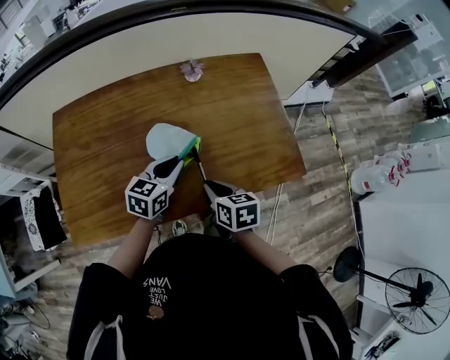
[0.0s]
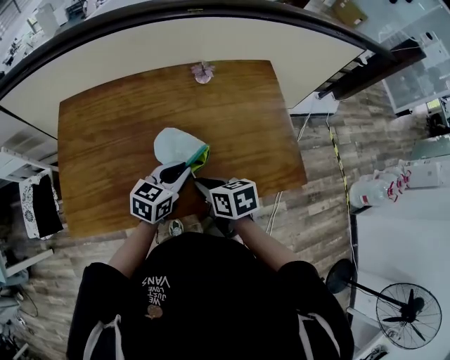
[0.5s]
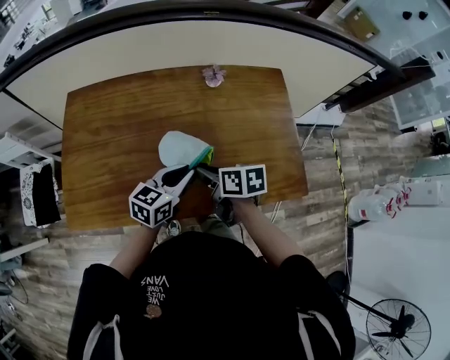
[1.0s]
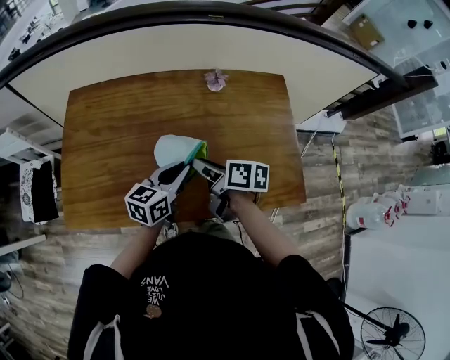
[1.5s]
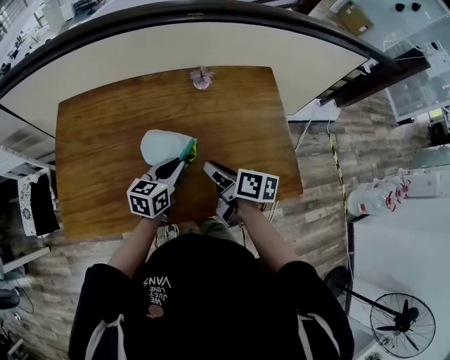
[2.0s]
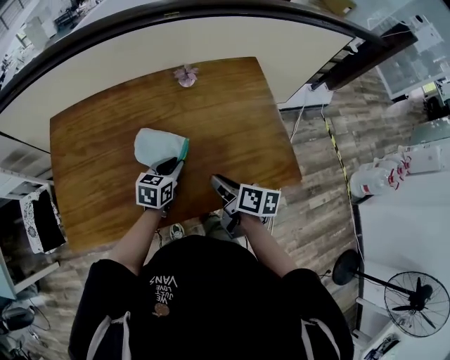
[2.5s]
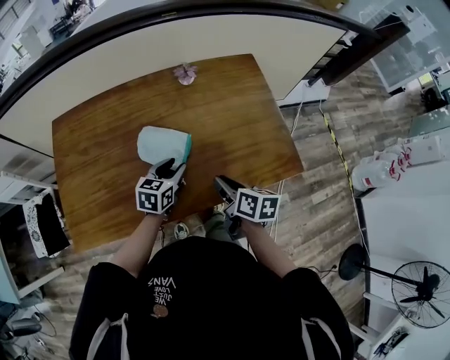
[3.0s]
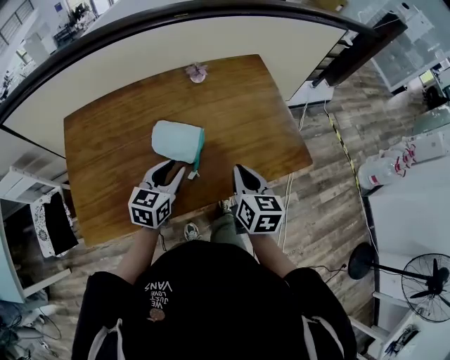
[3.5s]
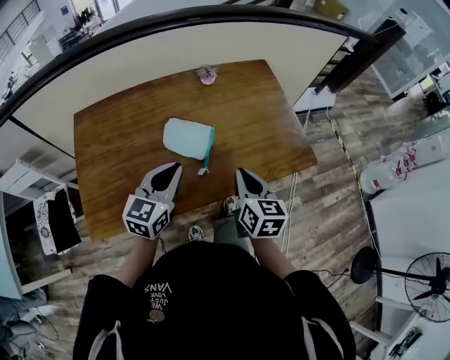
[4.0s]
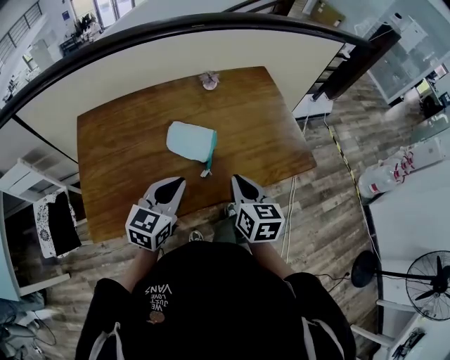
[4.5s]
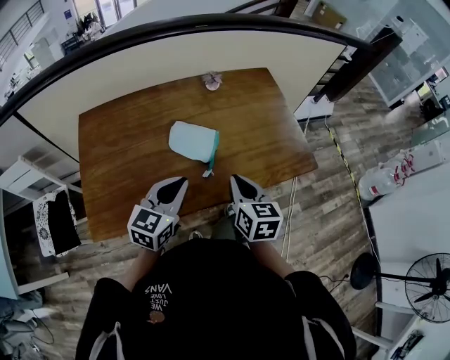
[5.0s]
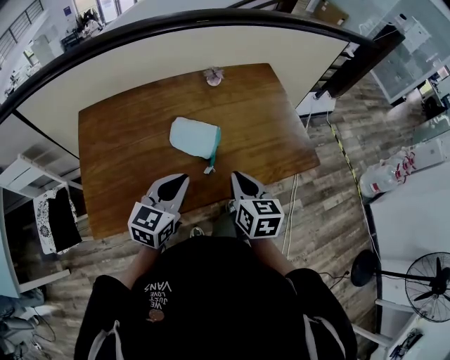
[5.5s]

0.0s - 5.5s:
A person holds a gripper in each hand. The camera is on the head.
0.0s - 2.0s: The right gripper shifts approximately 10 cm forward, and turns by some 30 degrees.
2.0s - 3.5s: Both grippers travel together backward, about 10 cm. The right gripper rotates about 40 degrees. The left gripper opens its fingers.
3.5s - 5.5s: The left gripper moves backward and upward, roughly 10 cm, and closes up. The right gripper is displaced to the left and backward by some 10 cm.

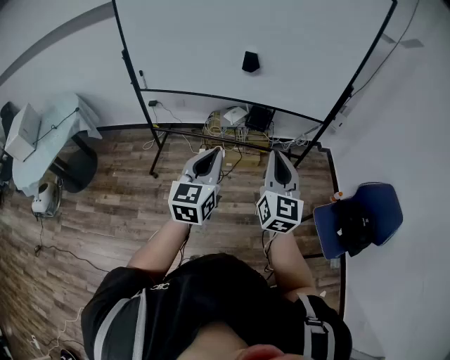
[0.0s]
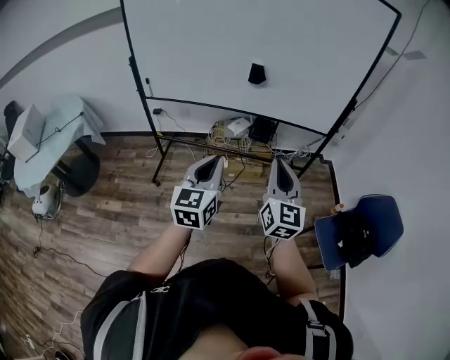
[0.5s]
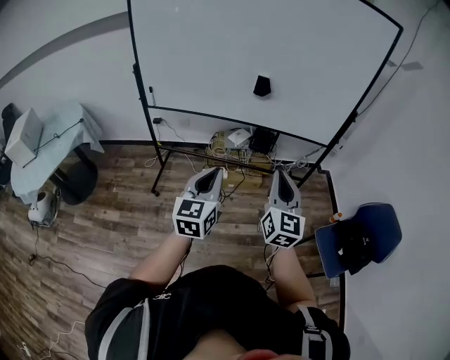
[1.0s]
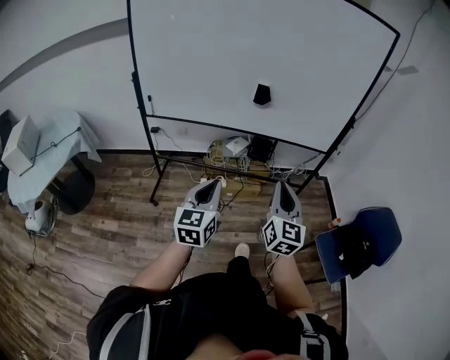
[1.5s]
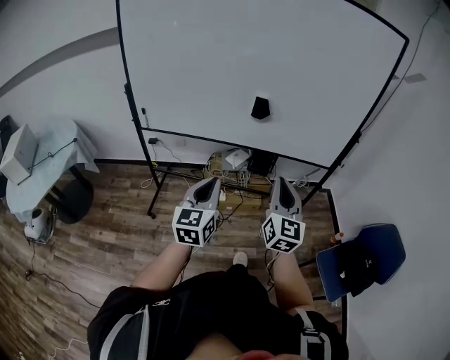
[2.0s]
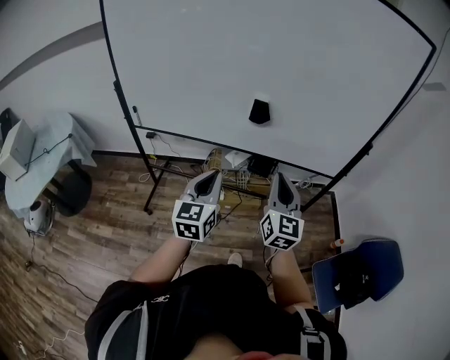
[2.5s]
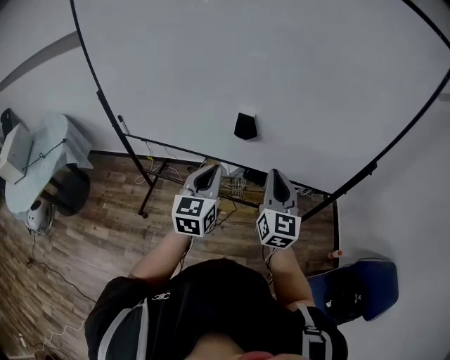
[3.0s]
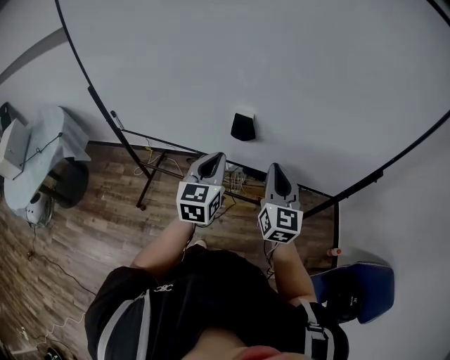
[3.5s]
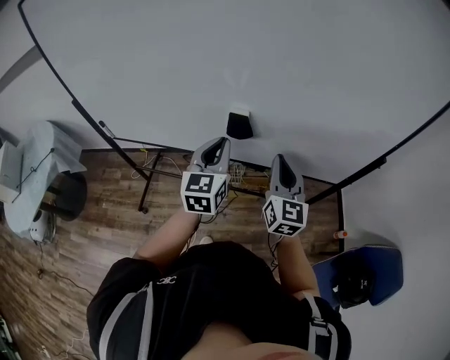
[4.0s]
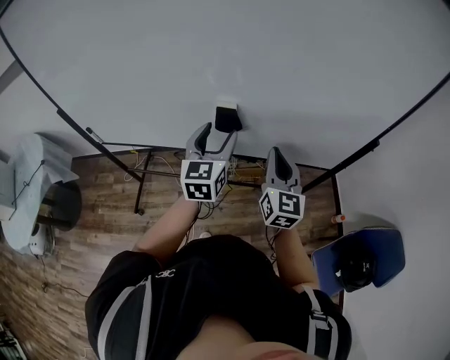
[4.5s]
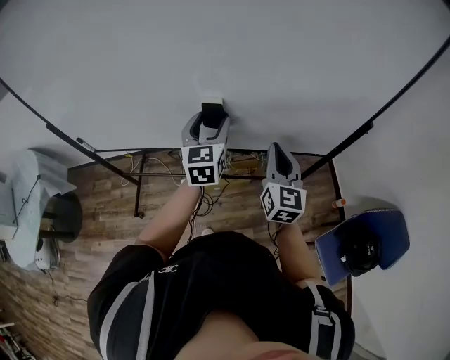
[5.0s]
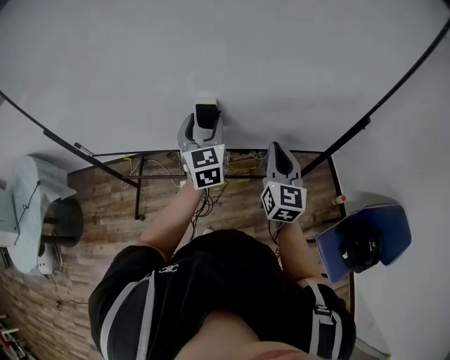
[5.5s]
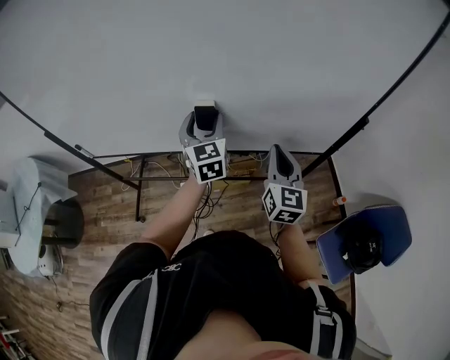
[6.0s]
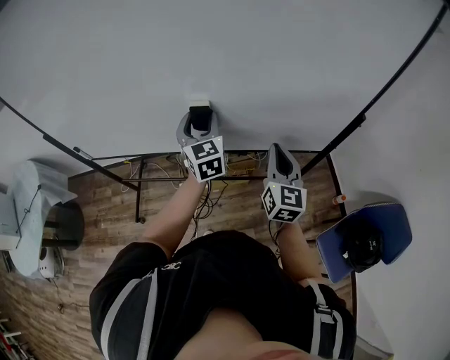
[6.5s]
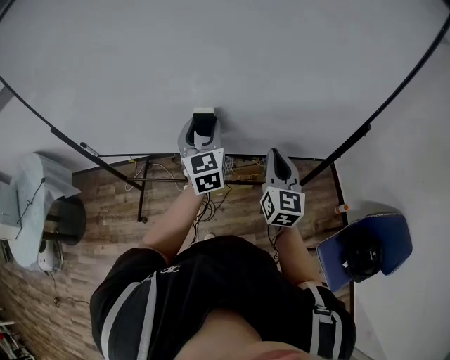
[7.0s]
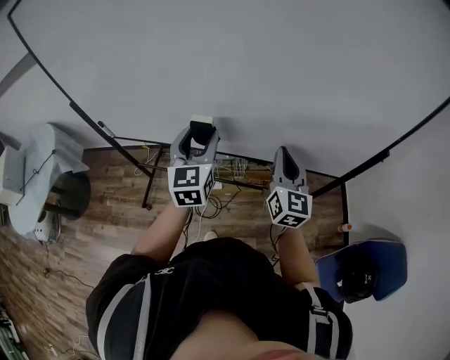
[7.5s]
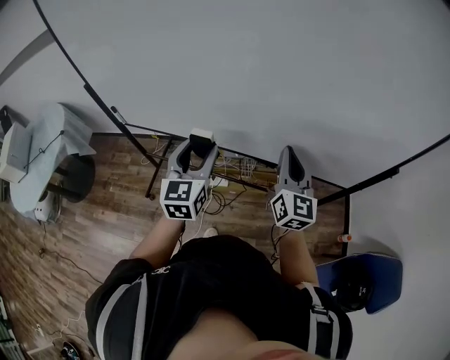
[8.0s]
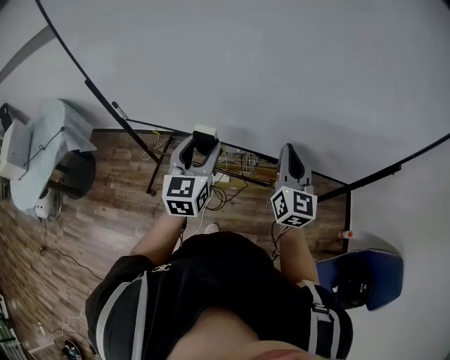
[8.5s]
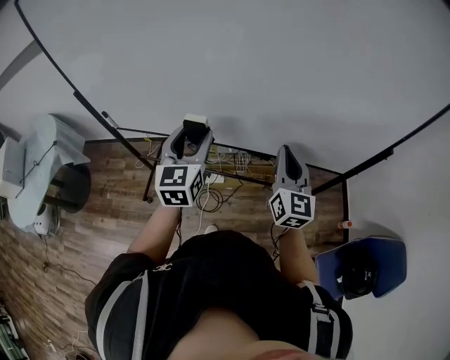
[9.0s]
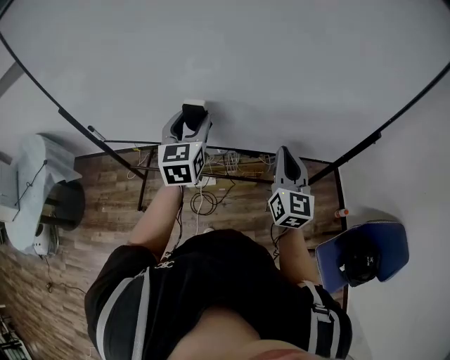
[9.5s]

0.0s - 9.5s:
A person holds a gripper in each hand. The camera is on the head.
0.0s - 2.0s: The right gripper shifts about 10 cm forward; the left gripper shifts some 15 cm forward and to the left.
2.0s - 4.0s: The two grippers go about 35 cm forward.
4.0s - 5.5s: The left gripper is displaced forward by approximately 5 cm, and opens up, while the right gripper shifts about 5 cm to the right.
5.5s - 7.5s: The left gripper goes roughly 10 cm to the left and backward.

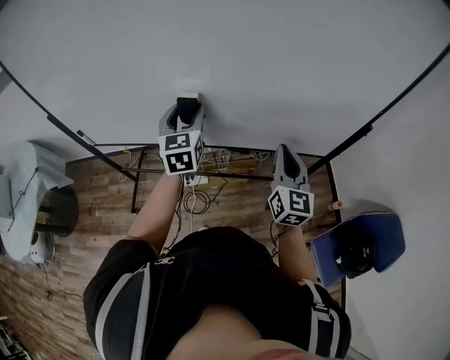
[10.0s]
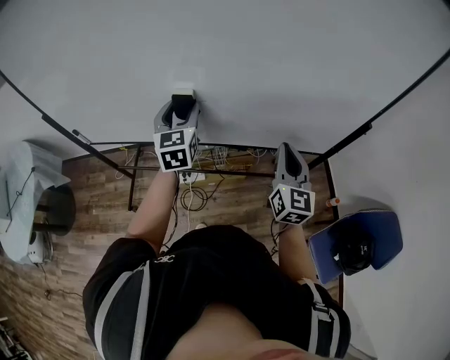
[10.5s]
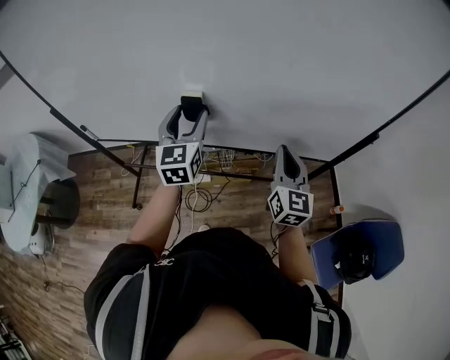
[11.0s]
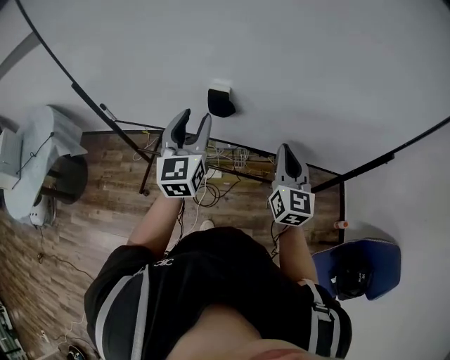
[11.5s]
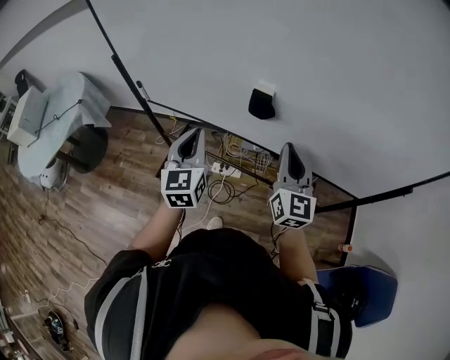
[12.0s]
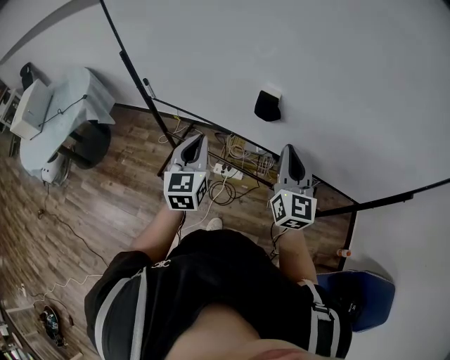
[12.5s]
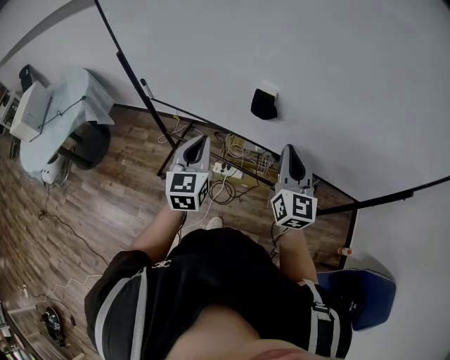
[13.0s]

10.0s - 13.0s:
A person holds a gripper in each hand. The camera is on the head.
10.0s - 11.5s: The left gripper moves backward, roughly 5 cm; the right gripper travels to the left by some 5 cm.
11.5s - 13.0s: The right gripper travels to the left by approximately 10 cm. Meanwhile the left gripper moves to the left, downward and backward, approximately 10 cm, and closes up.

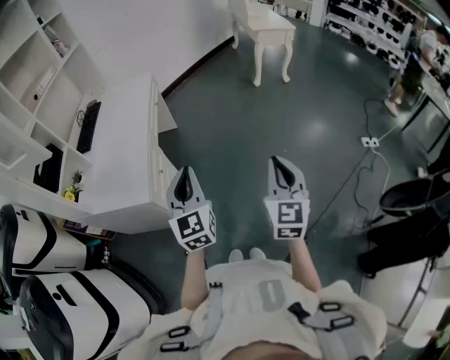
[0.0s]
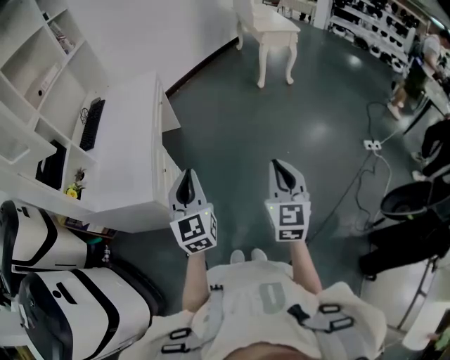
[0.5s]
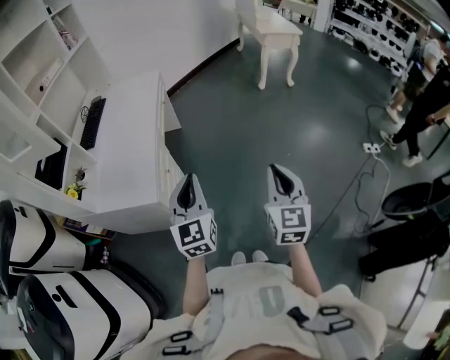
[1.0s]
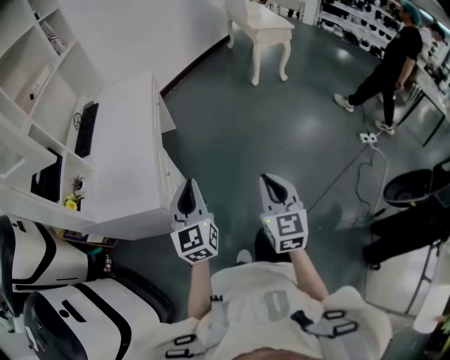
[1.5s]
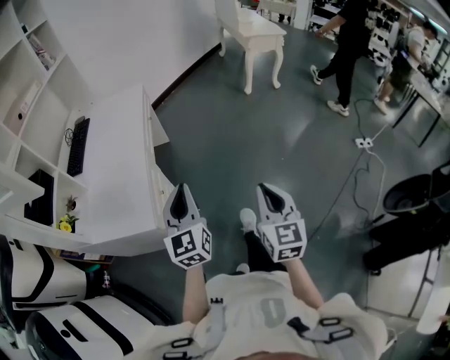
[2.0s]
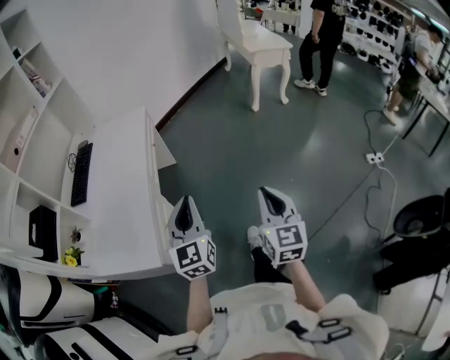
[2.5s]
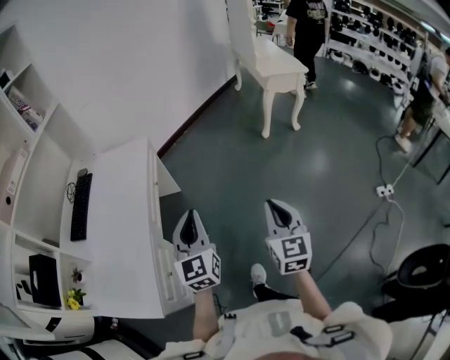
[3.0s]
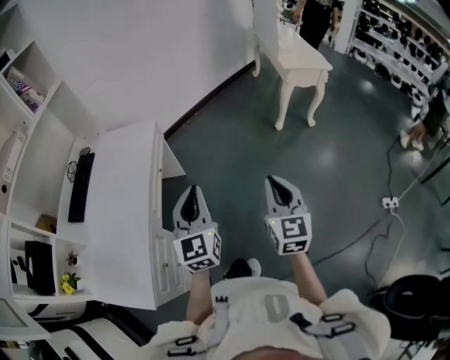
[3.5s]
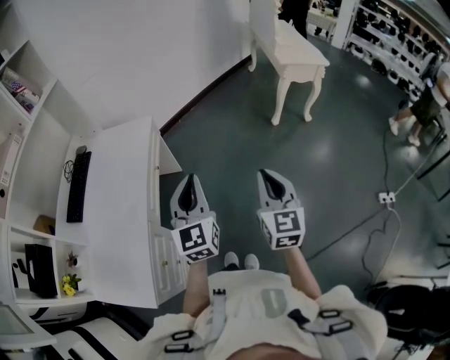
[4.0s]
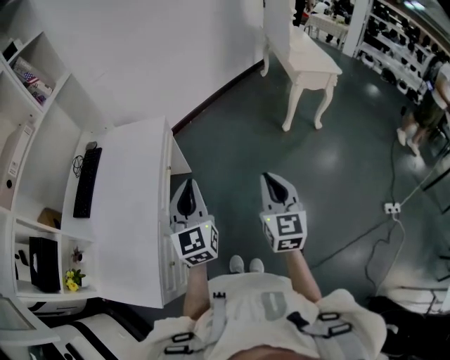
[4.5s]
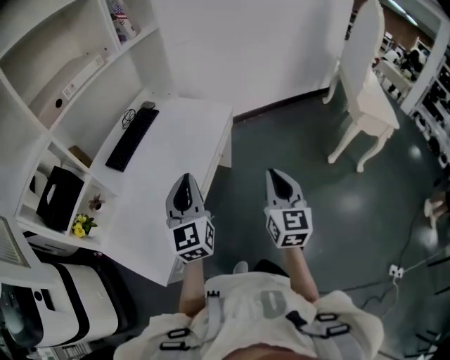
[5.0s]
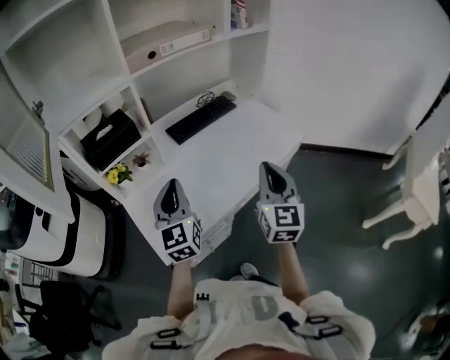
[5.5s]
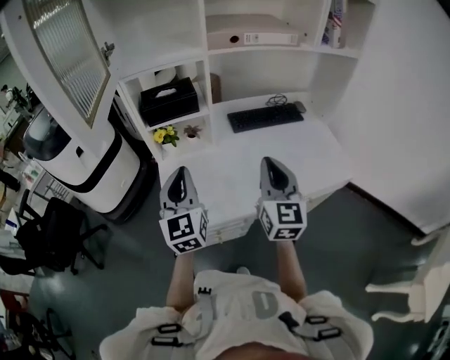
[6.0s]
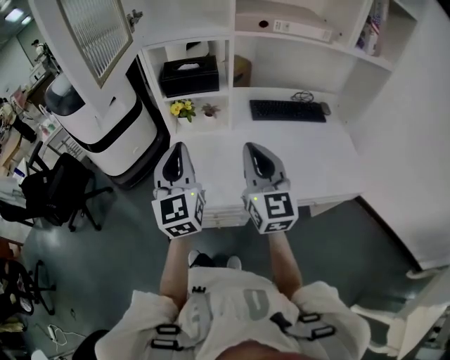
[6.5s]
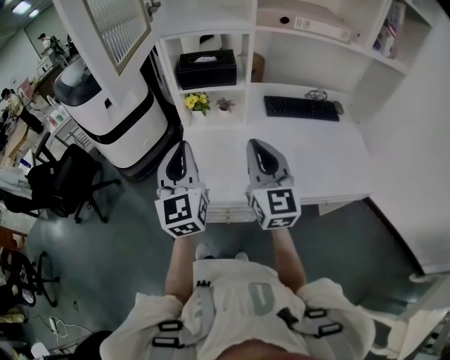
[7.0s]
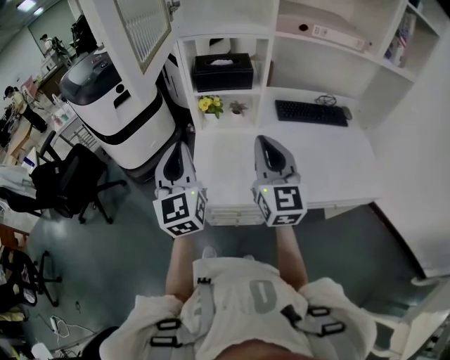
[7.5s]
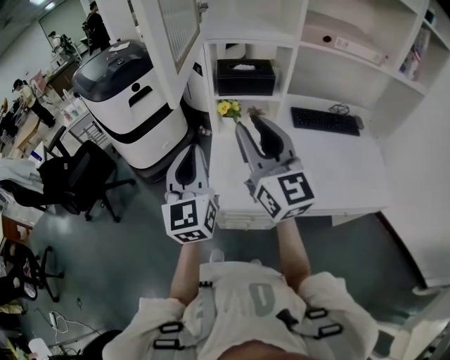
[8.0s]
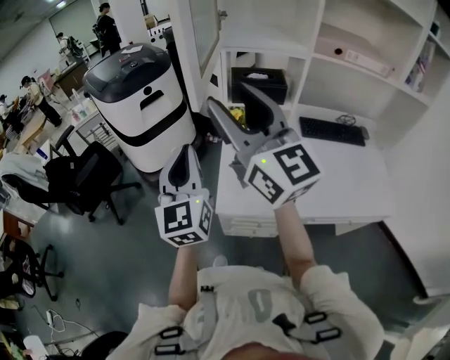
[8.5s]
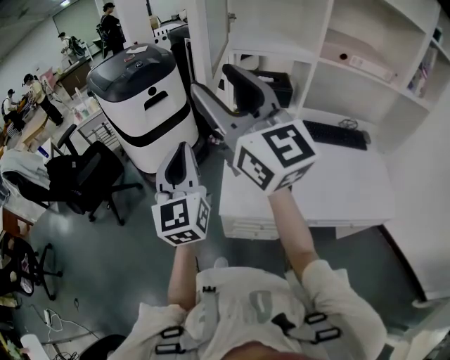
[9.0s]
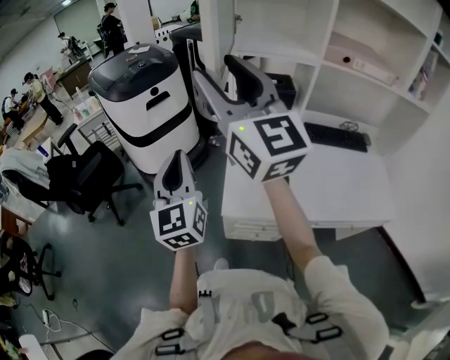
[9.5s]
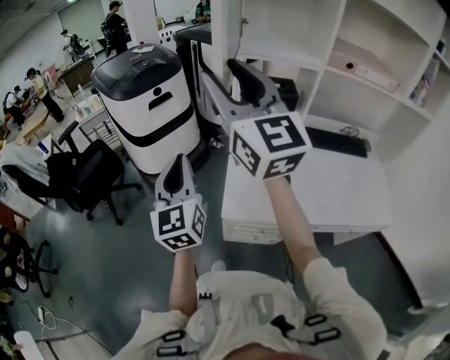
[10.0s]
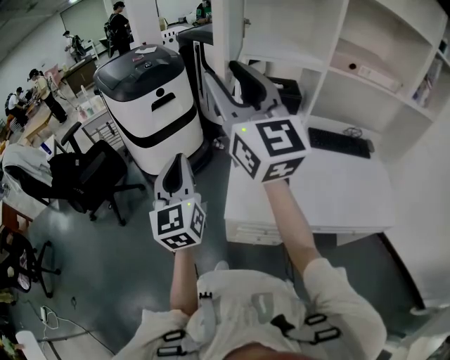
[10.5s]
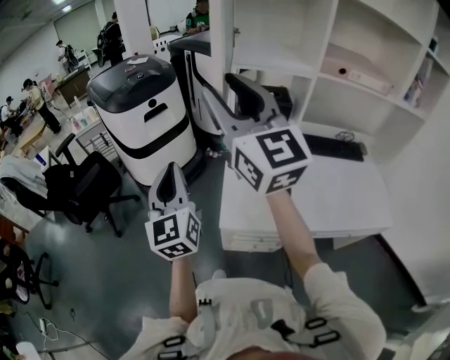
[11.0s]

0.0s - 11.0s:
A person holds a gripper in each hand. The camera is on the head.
0.0s - 2.0s: The left gripper moves to the left and forward, approximately 10 cm. Meanwhile the right gripper goes approximately 10 cm to the left and downward.
2.0s - 3.5s: The grippers both shift forward by some 40 cm.
3.5s - 5.5s: The pair of grippers is taken approximately 40 cm. The right gripper swivels some 50 degrees; the left gripper rotates some 60 degrees.
5.5s - 7.5s: The right gripper shifts by some 25 cm, and turns by some 50 degrees. Meanwhile the left gripper moves approximately 20 cm, and rotates some 40 degrees.
7.5s - 9.0s: The right gripper heads upward and to the left, covering some 30 cm, turns by some 30 degrees, and opens. The left gripper goes about 10 cm to the left and upward.
9.0s - 11.0s: The left gripper moves some 5 cm.
